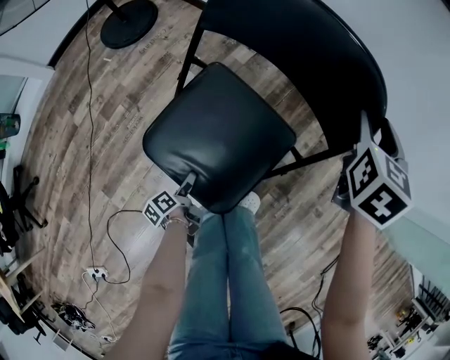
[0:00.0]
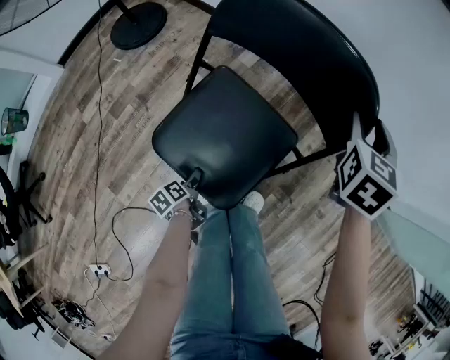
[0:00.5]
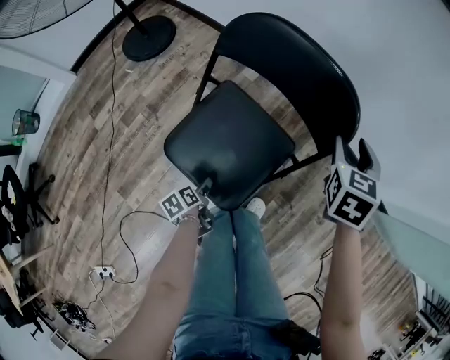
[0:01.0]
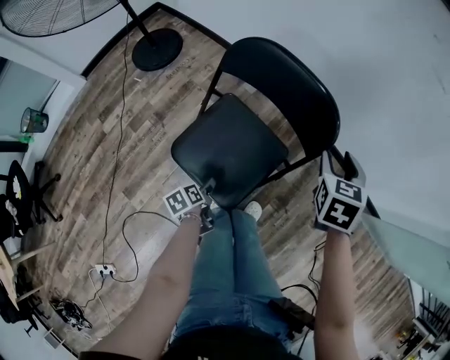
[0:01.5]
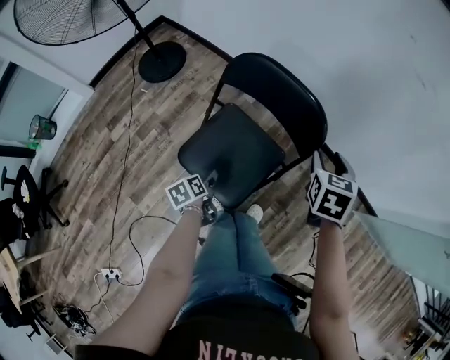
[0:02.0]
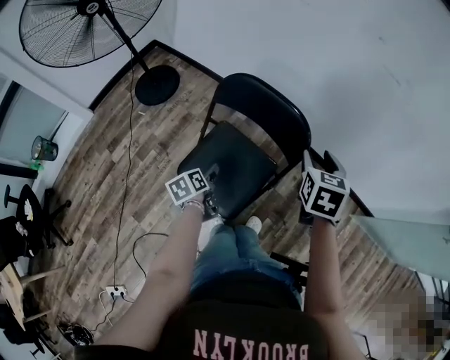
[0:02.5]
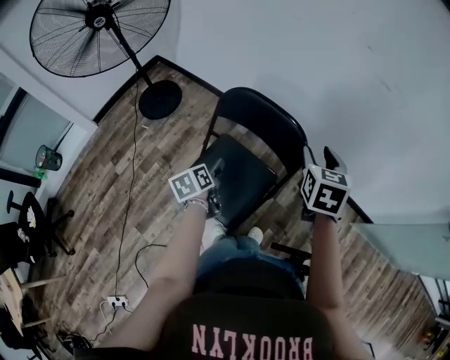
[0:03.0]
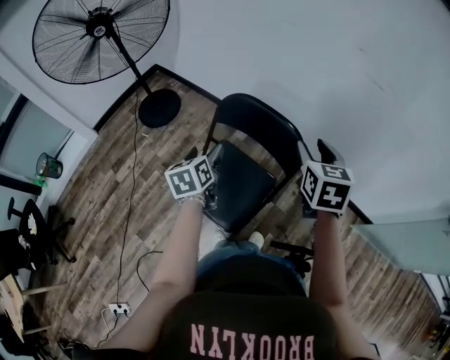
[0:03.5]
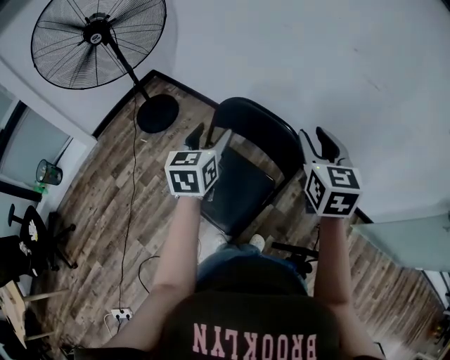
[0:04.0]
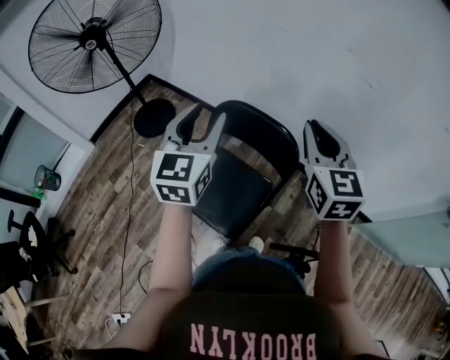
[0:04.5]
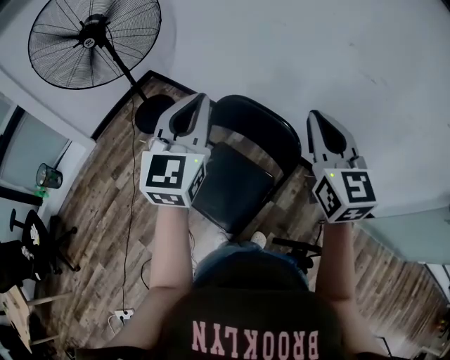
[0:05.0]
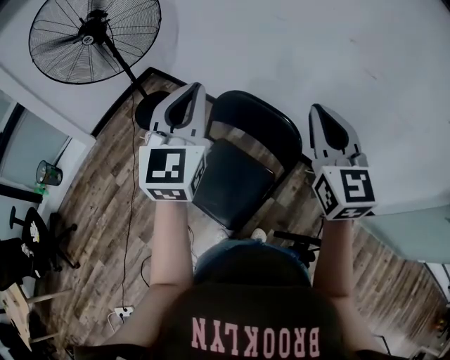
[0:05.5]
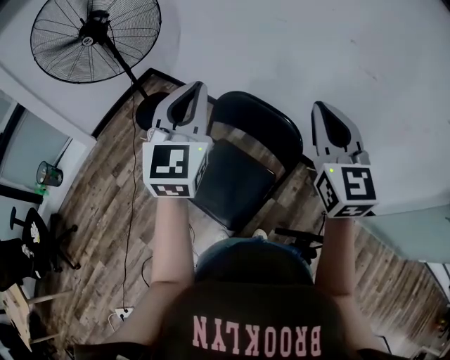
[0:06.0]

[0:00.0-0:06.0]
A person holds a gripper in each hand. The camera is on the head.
0:00.0 to 0:02.0: The right gripper moves backward and upward, roughly 15 cm; the left gripper moves upward, approximately 25 cm, and swivels about 30 degrees.
0:02.0 to 0:04.0: The right gripper goes approximately 20 cm upward, and changes its angle by some 30 degrees, while the left gripper shifts roughly 40 cm upward and forward, and points its fingers about 40 degrees further upward.
0:04.0 to 0:06.0: The right gripper goes some 10 cm upward, and swivels roughly 20 degrees. The left gripper moves upward, about 15 cm, turns by roughly 30 degrees, and closes.

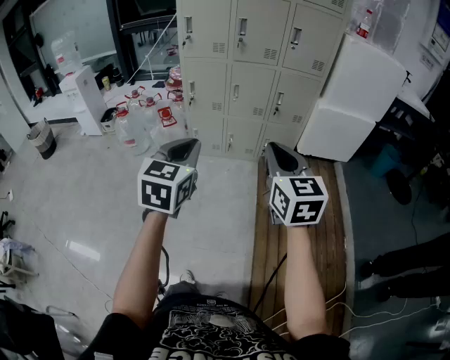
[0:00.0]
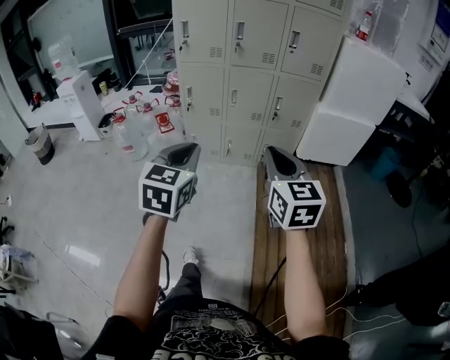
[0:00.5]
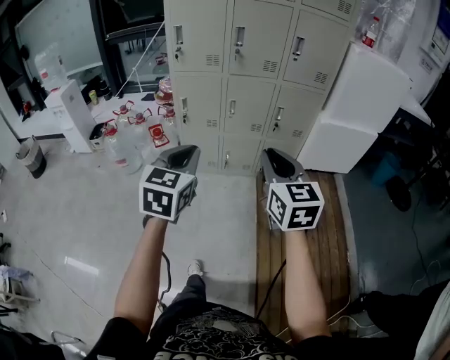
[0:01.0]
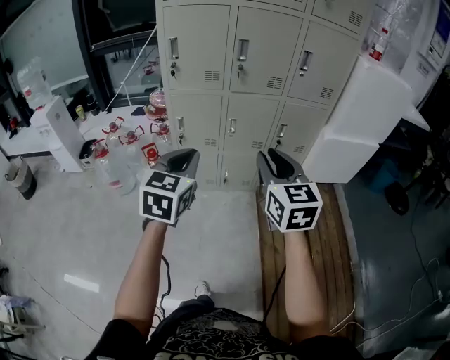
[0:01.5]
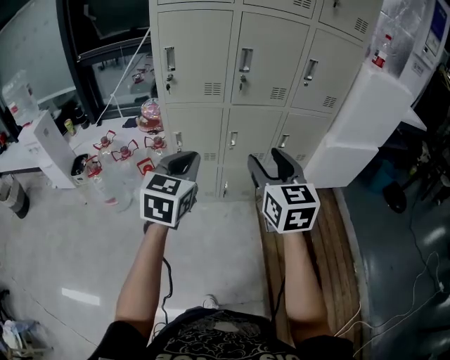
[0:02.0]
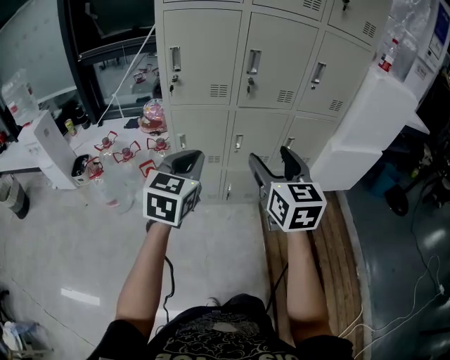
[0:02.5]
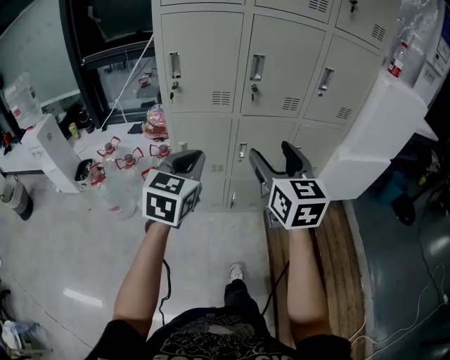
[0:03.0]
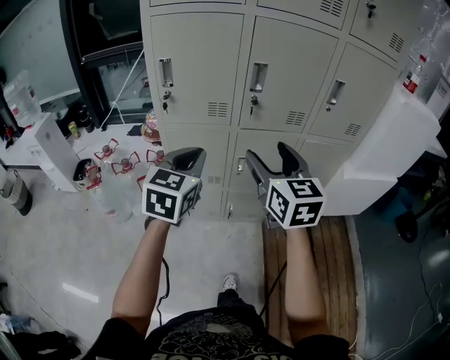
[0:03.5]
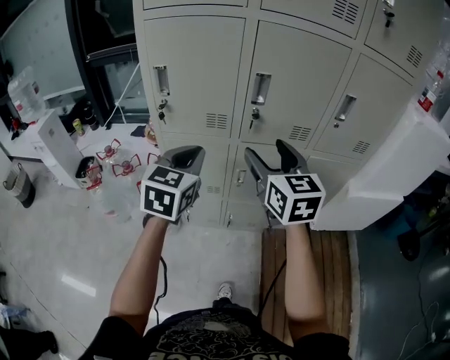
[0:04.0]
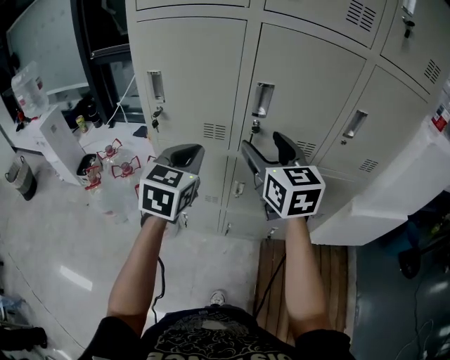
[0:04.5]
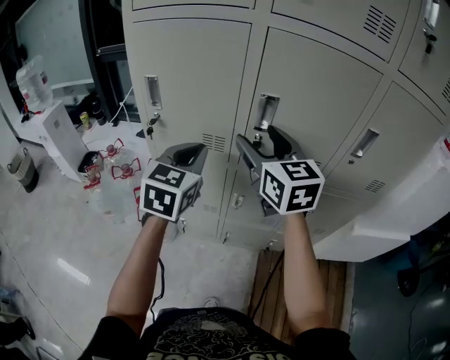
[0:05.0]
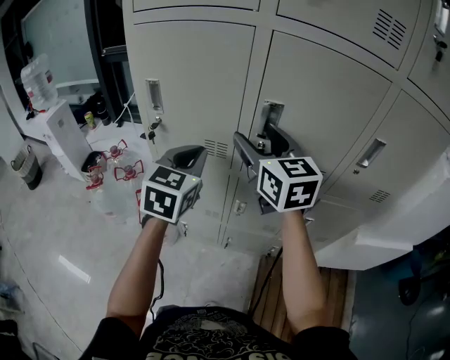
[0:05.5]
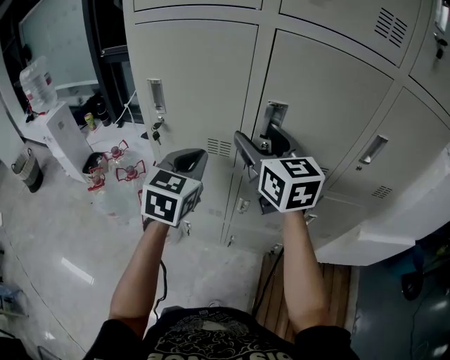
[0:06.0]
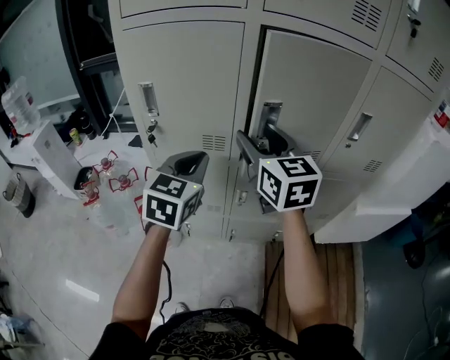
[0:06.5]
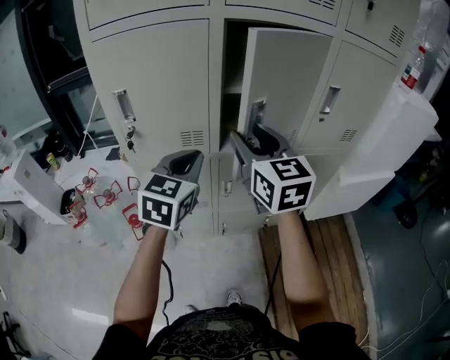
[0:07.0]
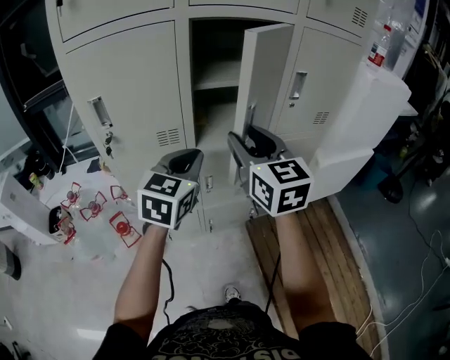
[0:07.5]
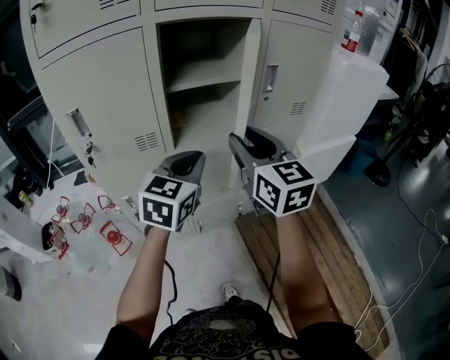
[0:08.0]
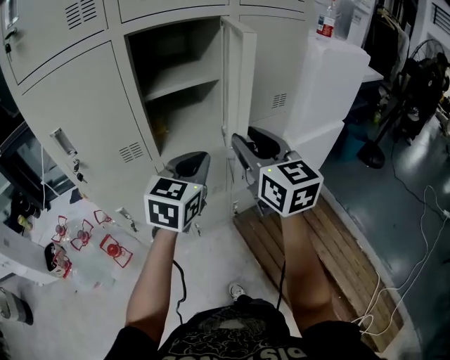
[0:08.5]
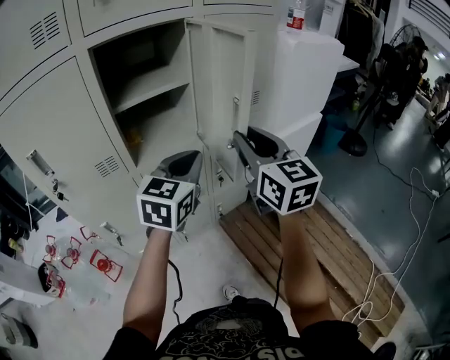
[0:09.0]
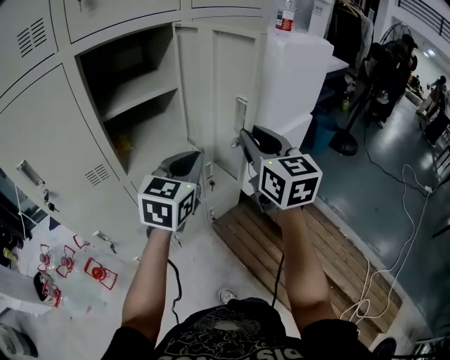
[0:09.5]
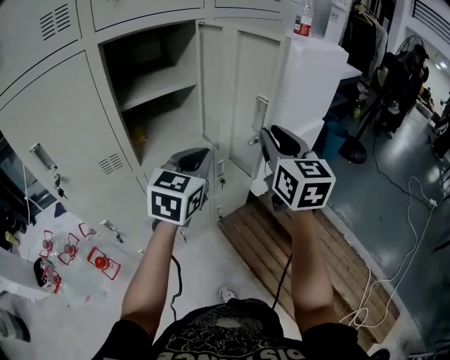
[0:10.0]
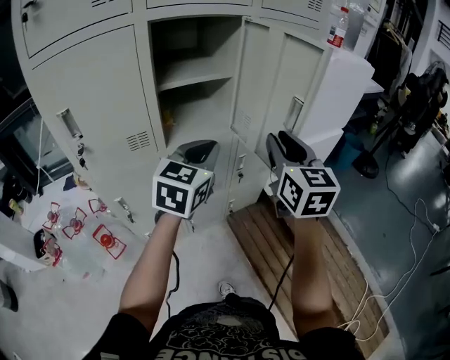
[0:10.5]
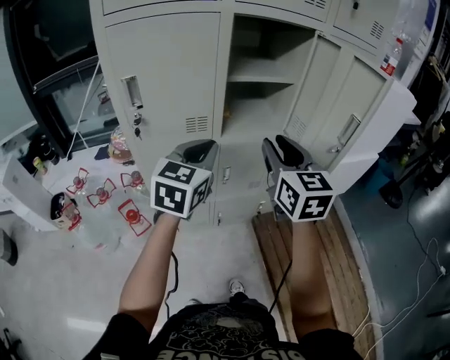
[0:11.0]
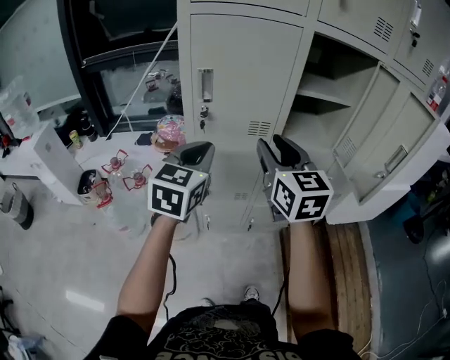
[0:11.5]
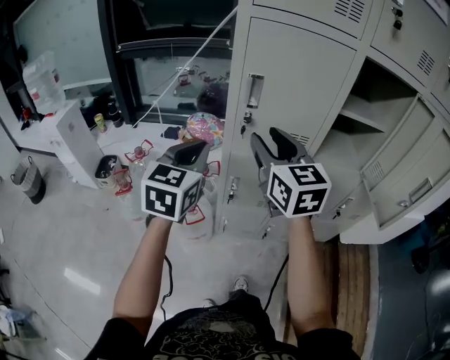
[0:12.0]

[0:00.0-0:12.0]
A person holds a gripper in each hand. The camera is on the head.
0:00.0 to 0:02.0: The left gripper shifts about 35 cm forward; the right gripper moves forward and to the left, some 35 cm, and opens its fingers.
0:02.0 to 0:04.0: The two grippers go about 25 cm forward.
0:04.0 to 0:06.0: The two grippers go approximately 15 cm forward.
0:06.0 to 0:08.0: The left gripper changes place by roughly 20 cm, and turns by about 30 degrees. The right gripper ends up some 20 cm from where it was, rotates some 30 degrees, and closes.
0:08.0 to 0:10.0: The left gripper moves to the right, some 10 cm, while the right gripper moves to the right, roughly 15 cm, and rotates approximately 20 degrees.
0:10.0 to 0:12.0: Both grippers are carried some 50 cm. The left gripper turns by approximately 40 degrees; the right gripper rotates some 40 degrees.

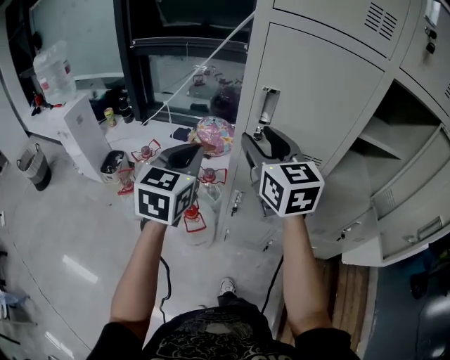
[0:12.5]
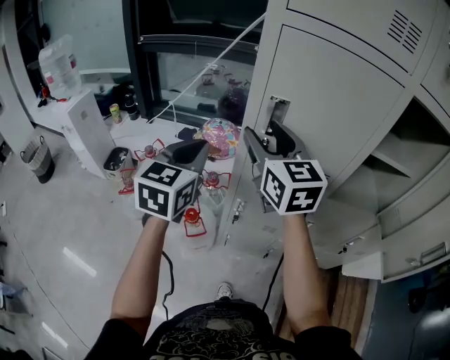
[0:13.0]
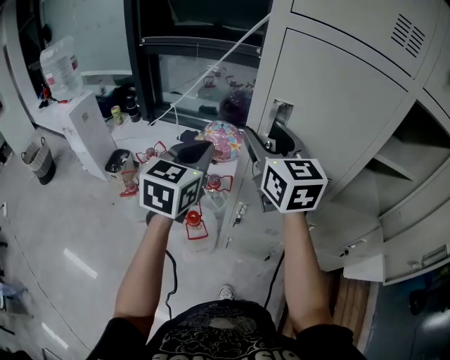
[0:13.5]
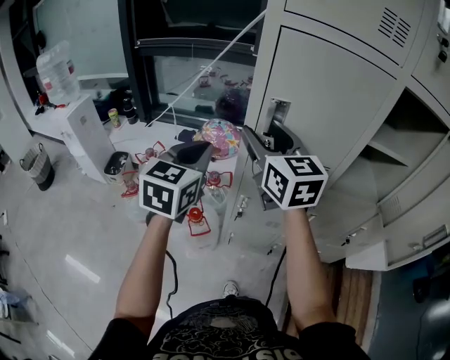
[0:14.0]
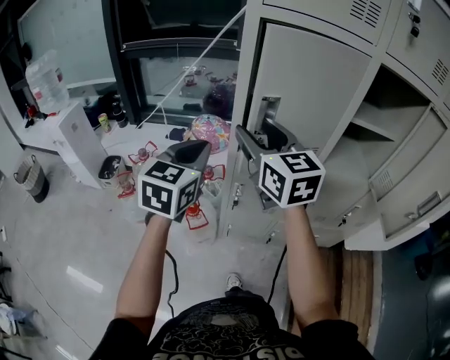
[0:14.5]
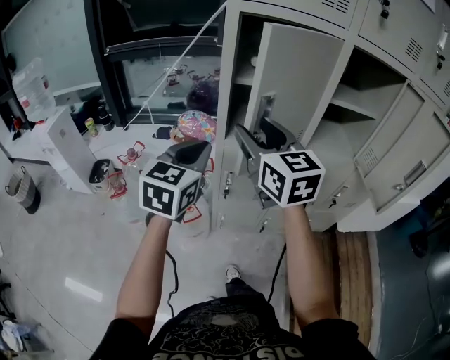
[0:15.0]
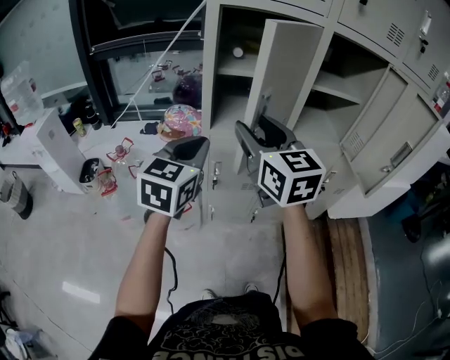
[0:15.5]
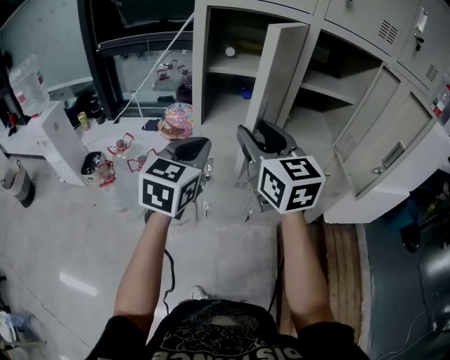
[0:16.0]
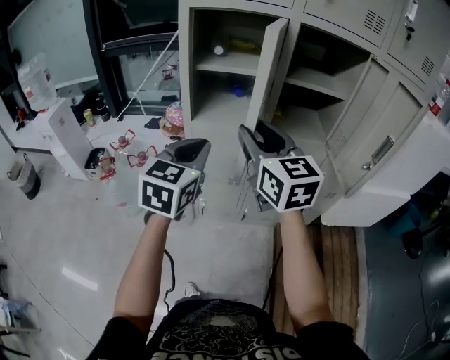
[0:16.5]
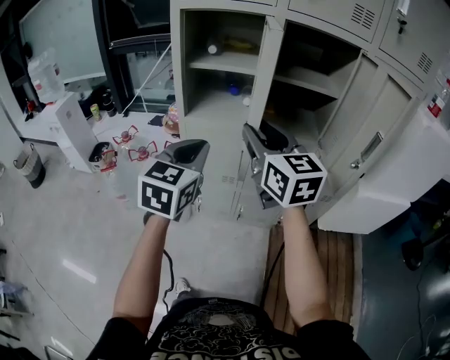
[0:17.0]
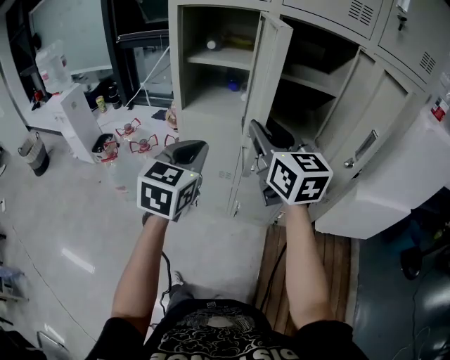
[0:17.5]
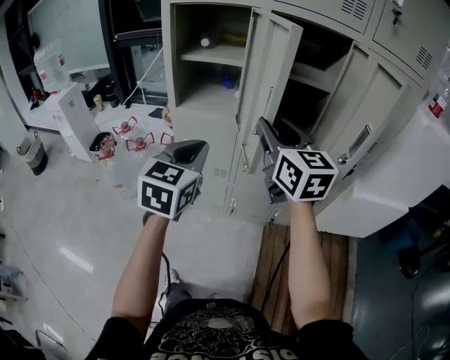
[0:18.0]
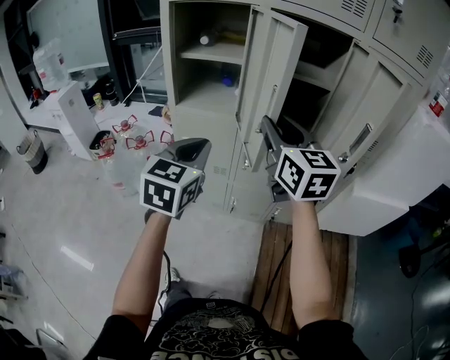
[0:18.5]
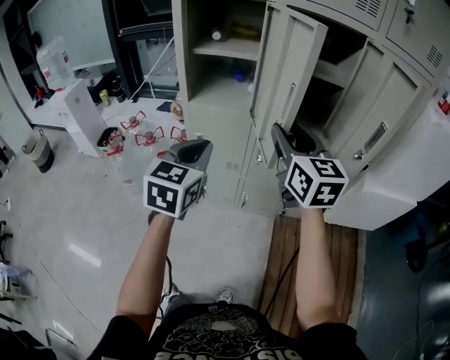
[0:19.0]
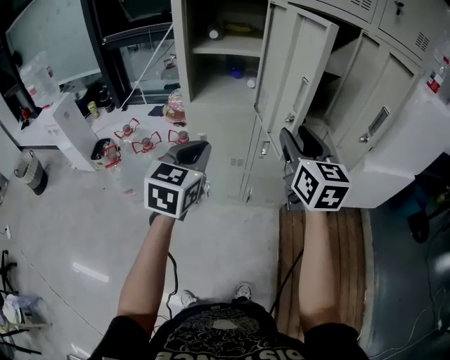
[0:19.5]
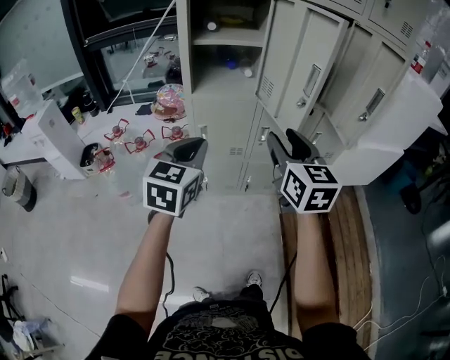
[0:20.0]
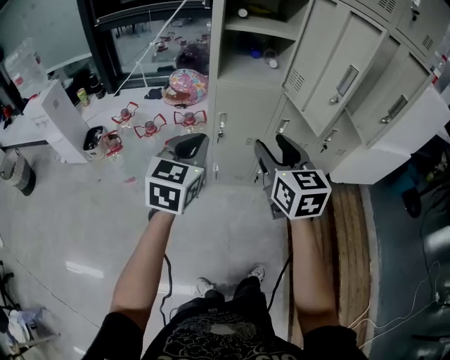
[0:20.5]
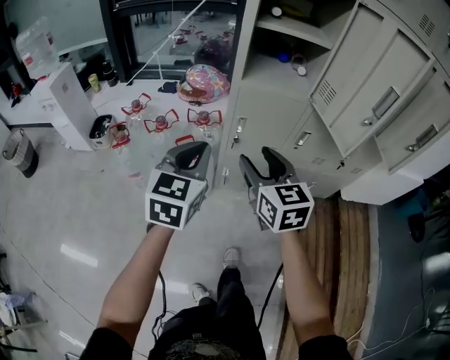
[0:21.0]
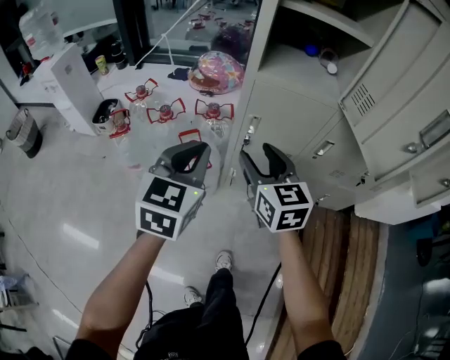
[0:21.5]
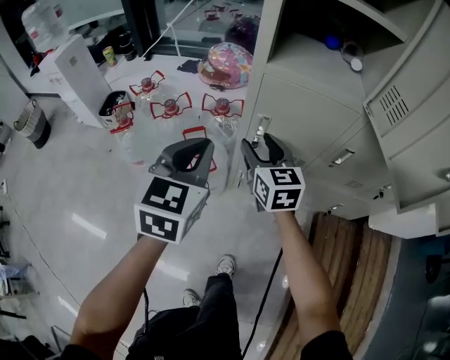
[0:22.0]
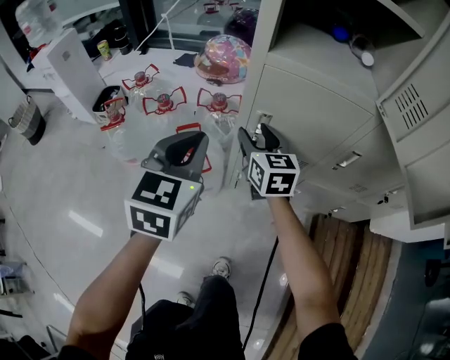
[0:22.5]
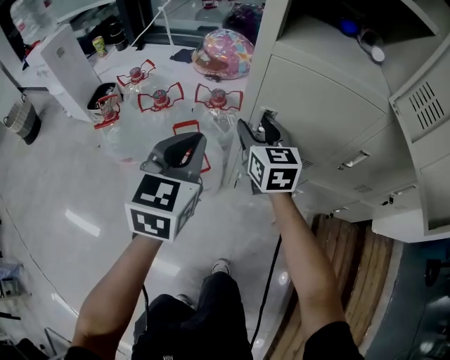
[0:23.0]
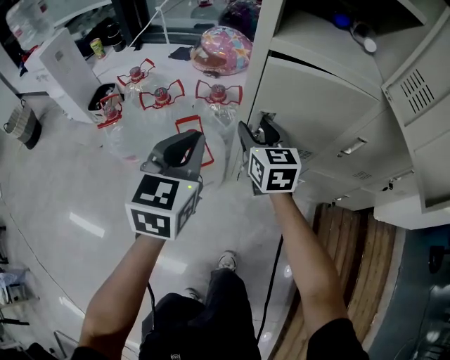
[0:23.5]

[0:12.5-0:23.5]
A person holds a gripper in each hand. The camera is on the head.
0:12.5 to 0:14.5: The right gripper travels forward and back again, some 5 cm each way.
0:14.5 to 0:16.0: The right gripper moves backward and to the right, about 15 cm. The left gripper goes roughly 15 cm to the right and backward.
0:16.0 to 0:18.0: The left gripper is displaced to the right and backward by approximately 15 cm; the right gripper heads to the right, covering roughly 20 cm.
0:18.0 to 0:20.0: The left gripper moves to the left, some 15 cm; the right gripper travels to the left, backward and downward by some 15 cm, and changes its angle by about 20 degrees.
0:20.0 to 0:21.5: The left gripper heads downward, to the left and forward, covering roughly 20 cm; the right gripper goes roughly 30 cm downward, to the left and forward, and changes its angle by approximately 20 degrees.
0:21.5 to 0:23.5: The left gripper is displaced downward and forward by roughly 10 cm, while the right gripper travels downward and forward by some 20 cm.
